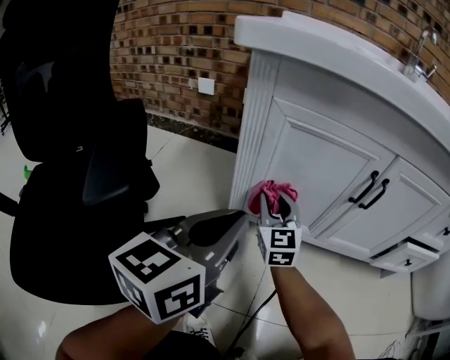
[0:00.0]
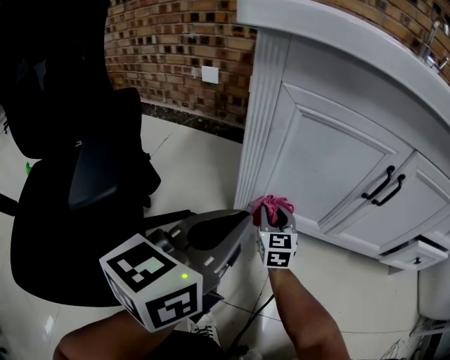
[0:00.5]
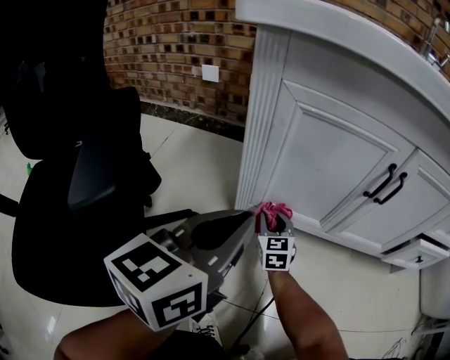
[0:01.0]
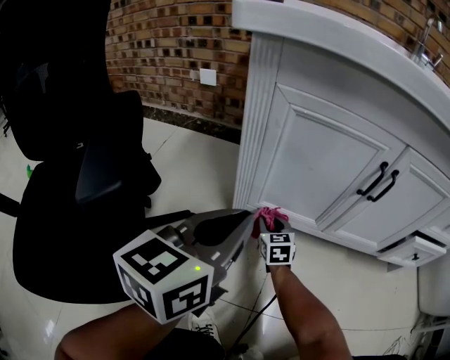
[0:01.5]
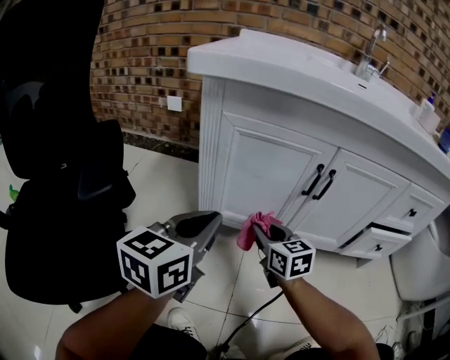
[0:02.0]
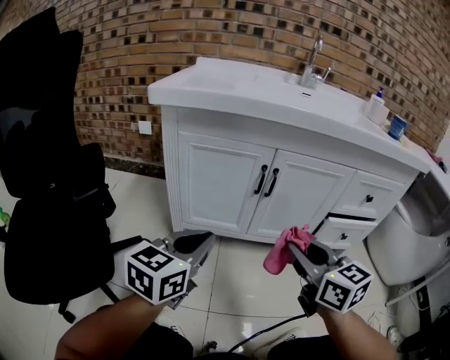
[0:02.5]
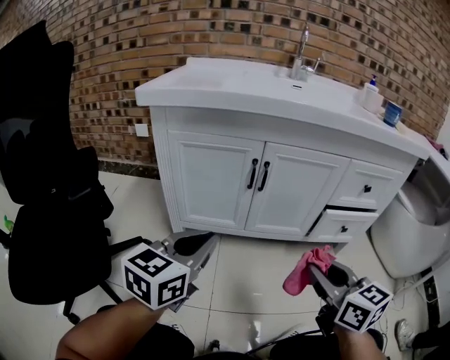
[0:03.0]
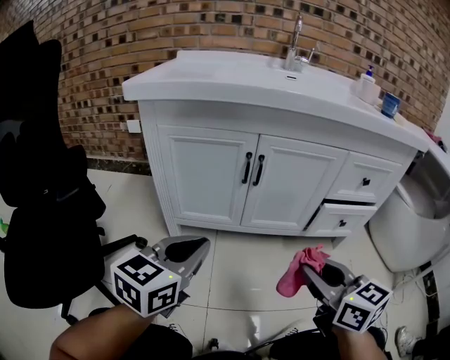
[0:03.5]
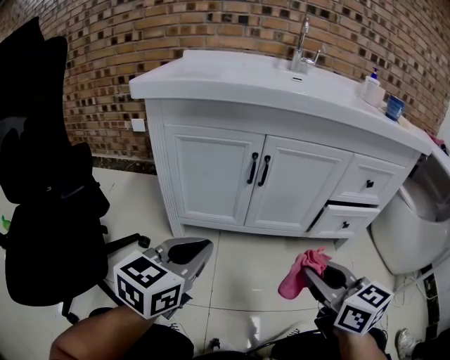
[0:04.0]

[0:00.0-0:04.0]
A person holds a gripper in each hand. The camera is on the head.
0:00.0 to 0:02.0: The right gripper is displaced to the right and backward by roughly 15 cm, reaches roughly 20 cm downward, then returns, and changes its angle by approximately 30 degrees.
0:02.0 to 0:04.0: The right gripper goes some 35 cm to the right, backward and upward. Meanwhile the left gripper moves to the right and backward, roughly 15 cm.

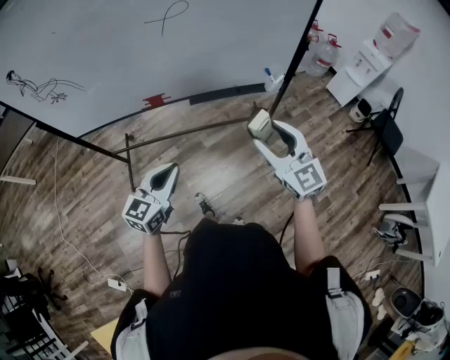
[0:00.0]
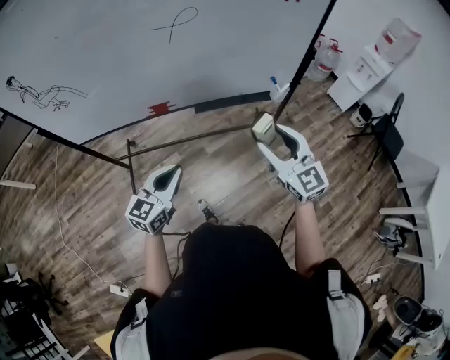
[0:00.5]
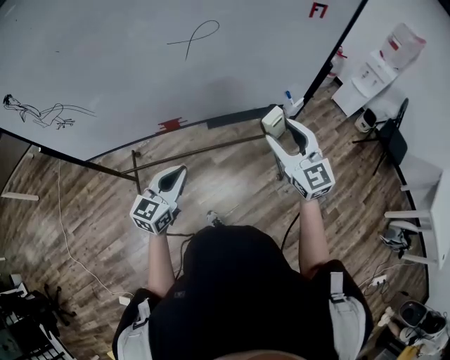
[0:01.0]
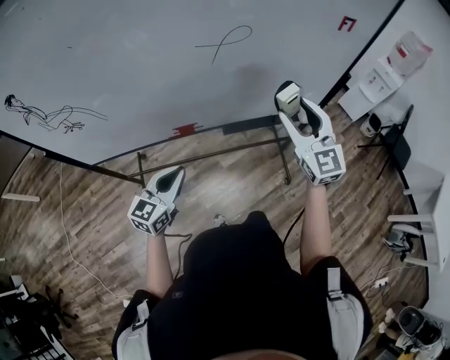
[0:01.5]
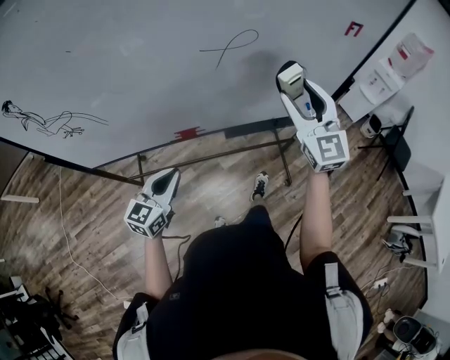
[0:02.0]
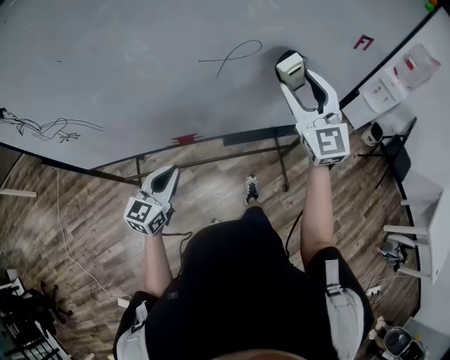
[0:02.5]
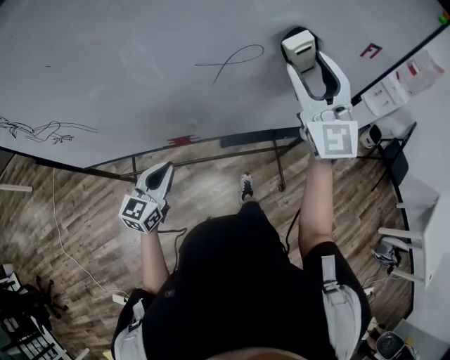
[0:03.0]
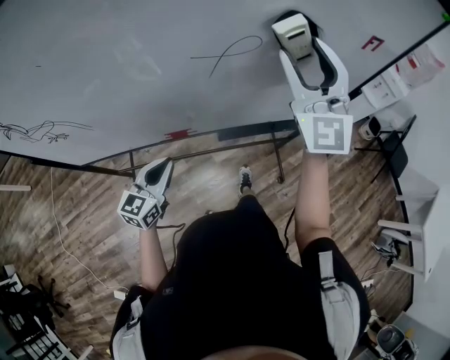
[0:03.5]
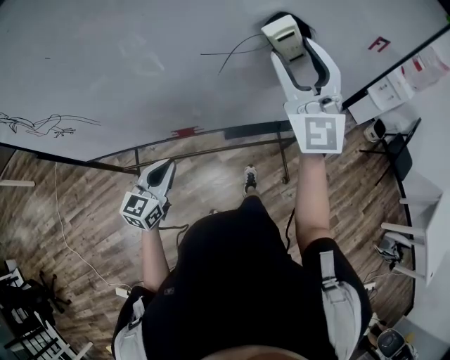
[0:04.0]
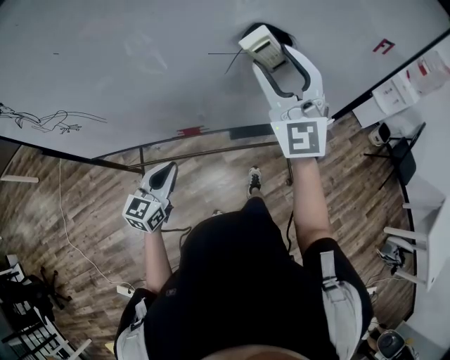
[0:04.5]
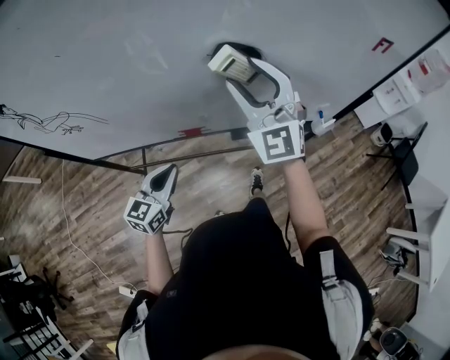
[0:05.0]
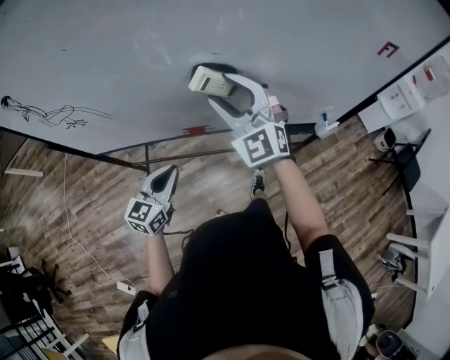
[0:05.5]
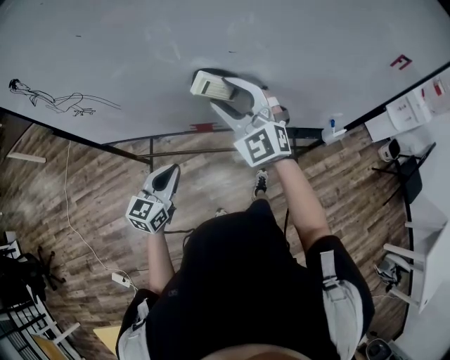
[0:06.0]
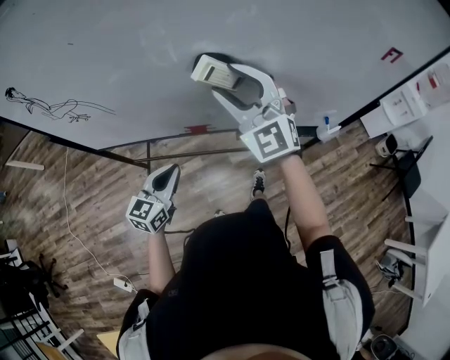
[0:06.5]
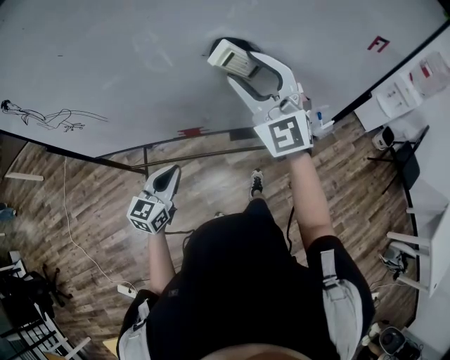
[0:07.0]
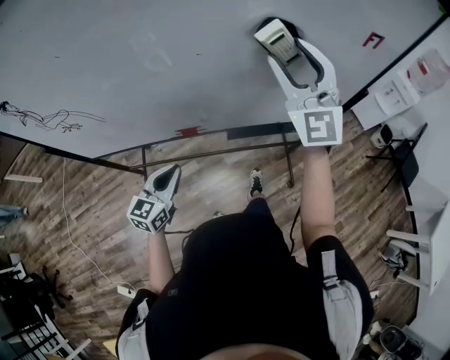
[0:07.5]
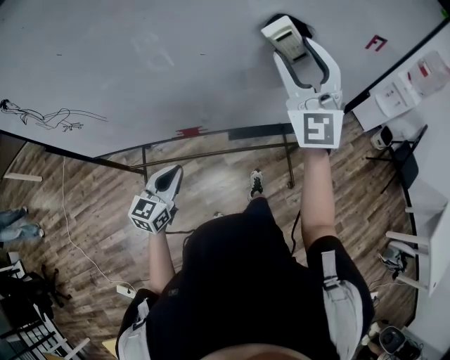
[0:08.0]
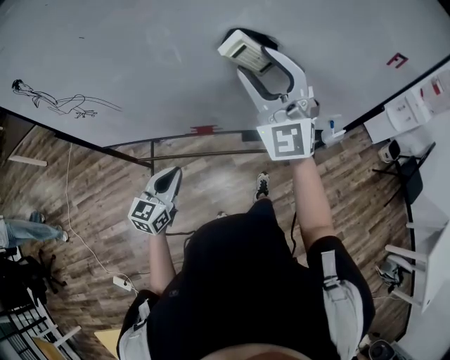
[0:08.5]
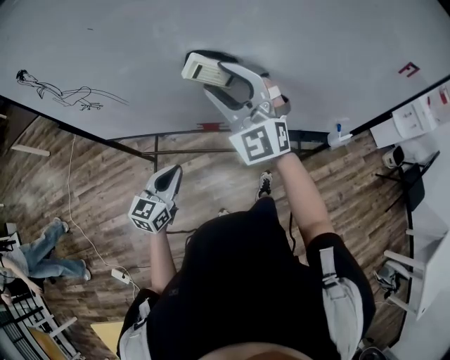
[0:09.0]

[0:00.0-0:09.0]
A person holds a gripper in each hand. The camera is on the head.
0:00.0 to 0:02.0: The left gripper moves to the left and forward, some 25 cm, while the right gripper travels forward and to the left by approximately 25 cm.
0:02.0 to 0:04.5: The right gripper travels to the left, forward and upward by approximately 15 cm, and swivels roughly 20 degrees.
0:04.5 to 0:07.0: The right gripper moves roughly 15 cm to the left and comes back.
0:07.0 to 0:09.0: The right gripper is displaced to the left by approximately 10 cm; the left gripper heads to the left, covering some 5 cm.

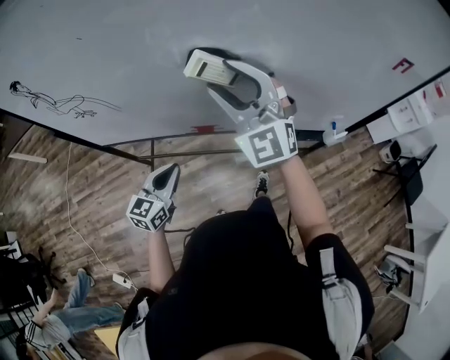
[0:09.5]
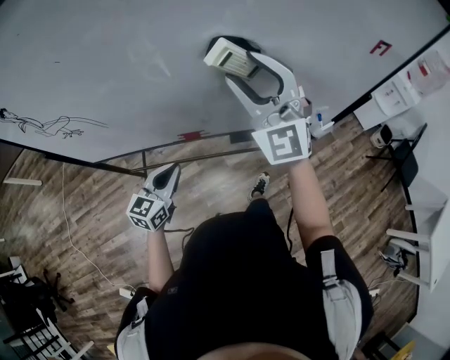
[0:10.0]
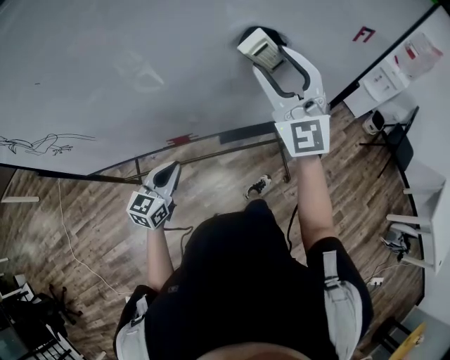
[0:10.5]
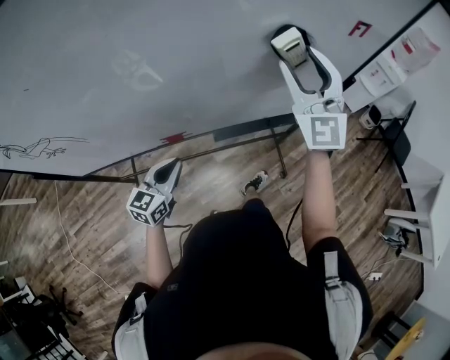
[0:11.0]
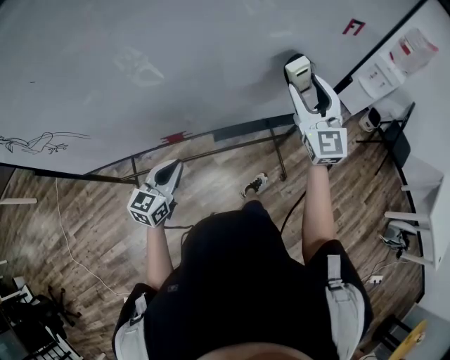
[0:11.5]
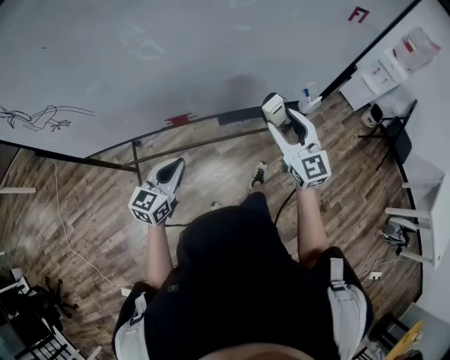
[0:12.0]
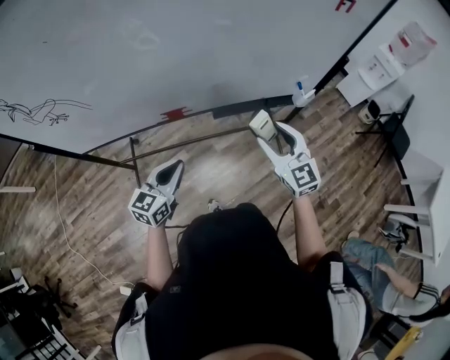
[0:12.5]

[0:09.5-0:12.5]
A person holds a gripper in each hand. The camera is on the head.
0:09.5 to 0:11.0: The right gripper heads to the right, covering about 25 cm, and turns by roughly 30 degrees, while the left gripper travels to the right and forward by roughly 10 cm.
0:11.0 to 0:12.5: The left gripper goes some 10 cm backward; the right gripper heads downward and backward, covering approximately 30 cm, and changes its angle by about 40 degrees.

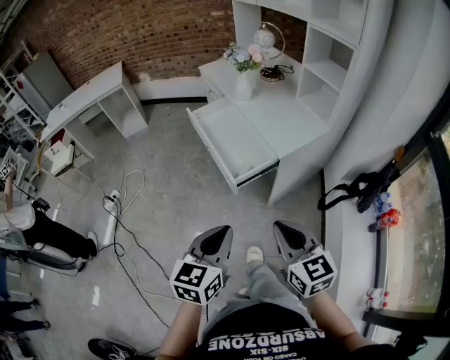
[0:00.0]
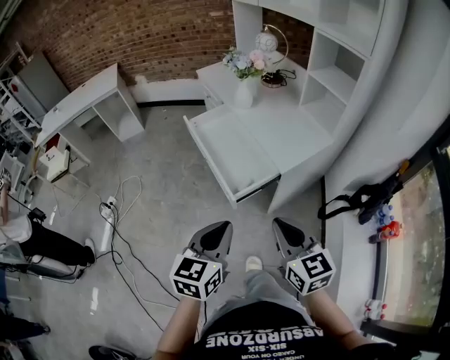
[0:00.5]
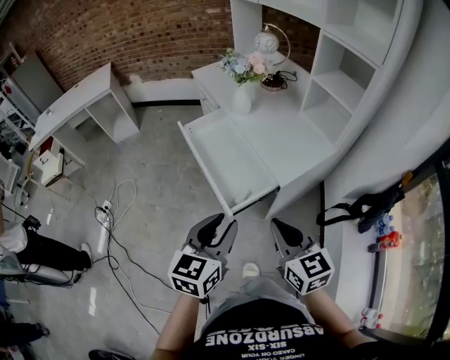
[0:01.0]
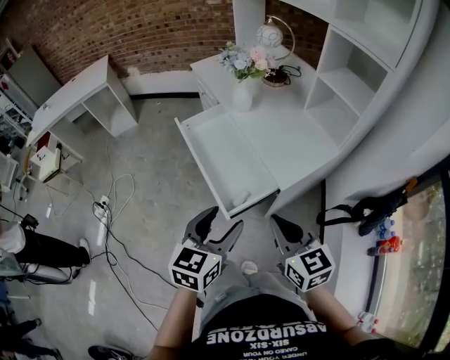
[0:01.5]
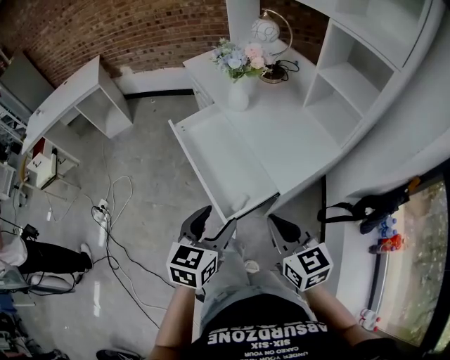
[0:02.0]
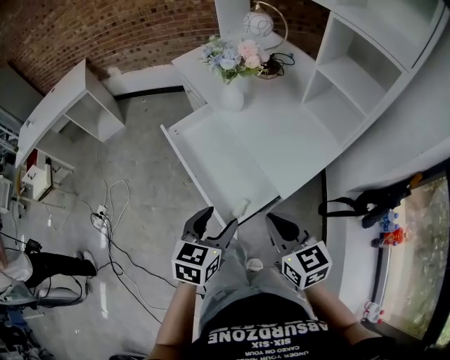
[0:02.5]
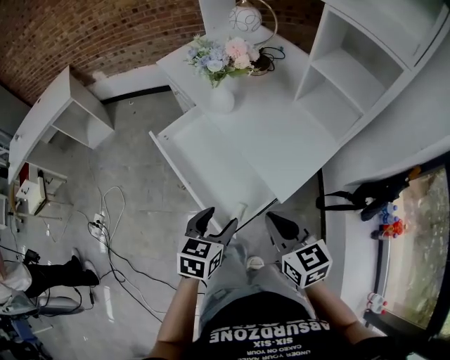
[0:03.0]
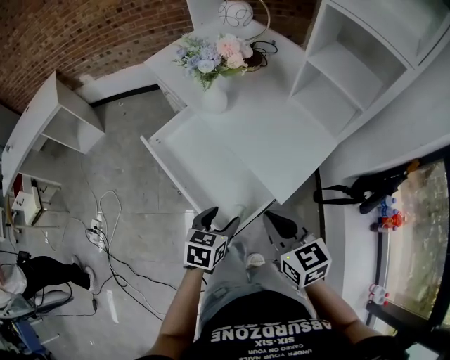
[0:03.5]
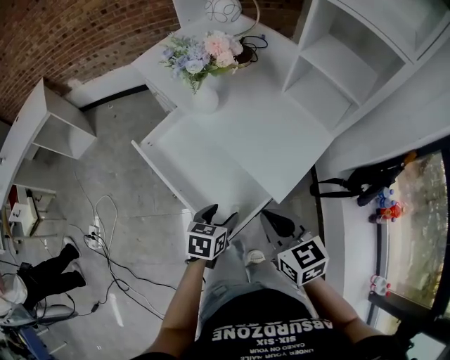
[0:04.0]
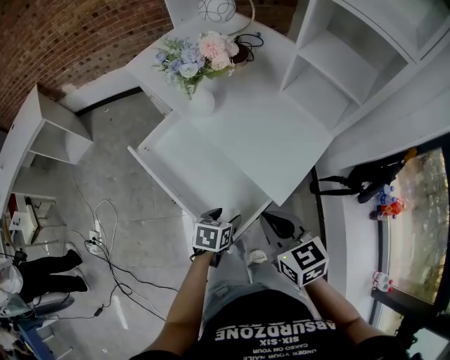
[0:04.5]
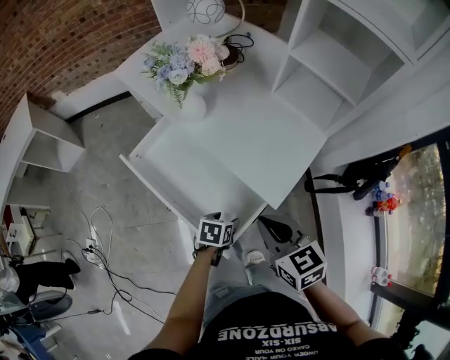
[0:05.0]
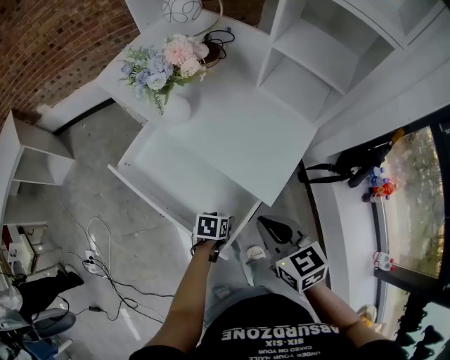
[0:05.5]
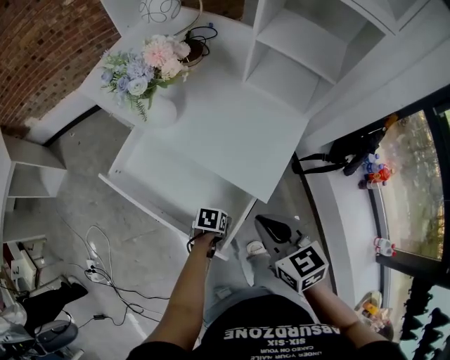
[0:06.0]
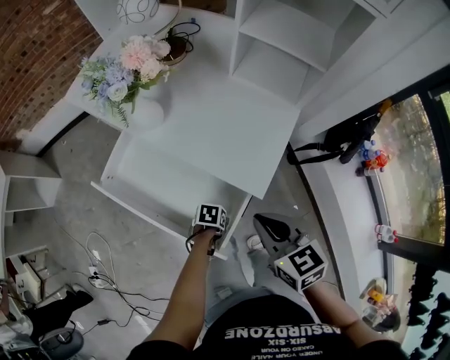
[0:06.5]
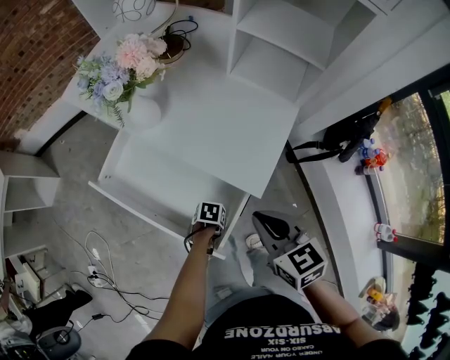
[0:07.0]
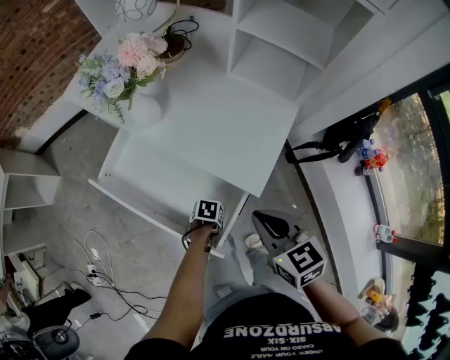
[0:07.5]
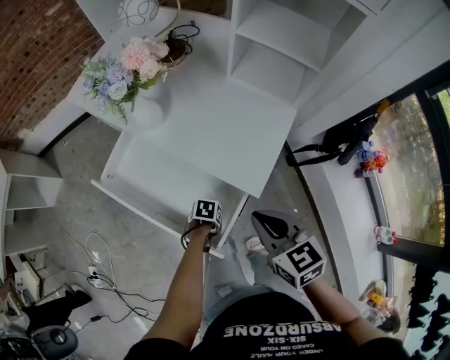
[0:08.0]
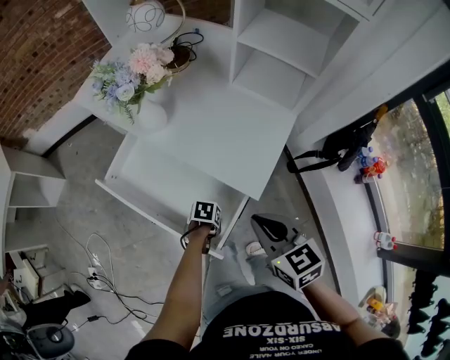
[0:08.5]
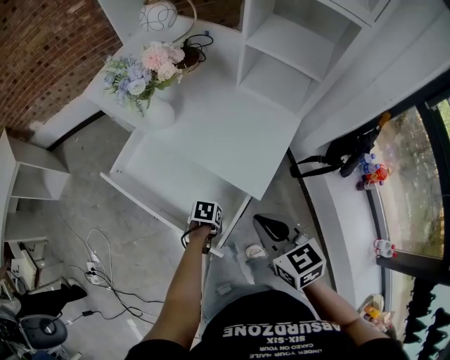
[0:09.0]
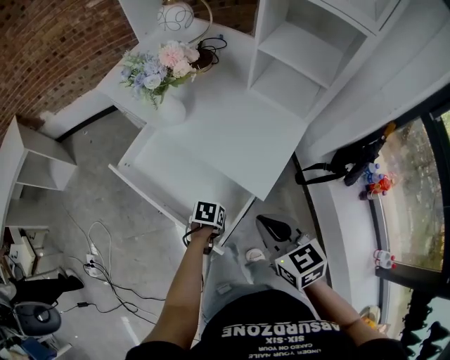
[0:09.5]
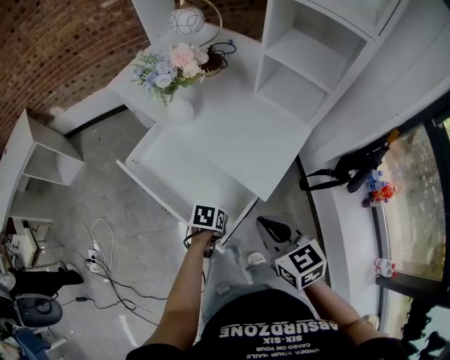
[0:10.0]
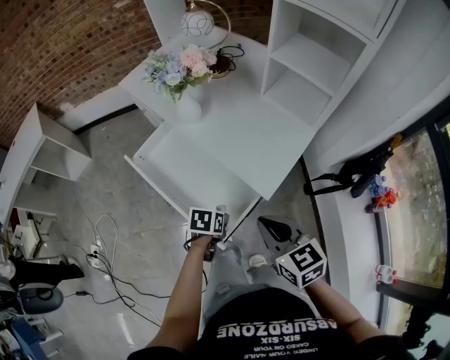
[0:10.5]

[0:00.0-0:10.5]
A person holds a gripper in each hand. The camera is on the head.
0:00.0 to 0:02.0: The two grippers go roughly 30 cm forward. The left gripper opens up.
0:02.0 to 0:04.0: The left gripper travels downward and forward by roughly 20 cm, and swivels roughly 30 degrees. The right gripper goes approximately 10 cm forward.
0:04.0 to 0:06.5: The left gripper is displaced downward by roughly 20 cm, and swivels about 40 degrees.
0:06.5 to 0:08.5: The left gripper closes its fingers.
0:08.5 to 0:10.5: The right gripper ends up some 5 cm from where it was. Meanwhile the left gripper moves upward, approximately 15 cm, and swivels approximately 20 degrees.
